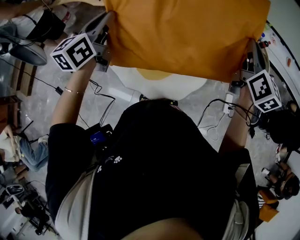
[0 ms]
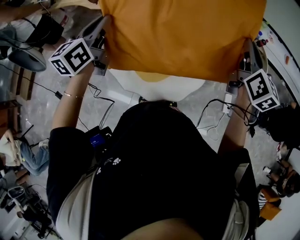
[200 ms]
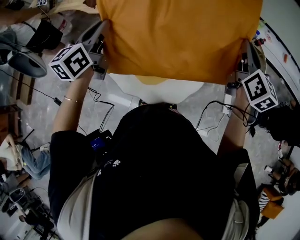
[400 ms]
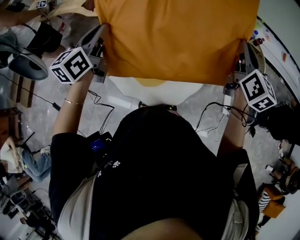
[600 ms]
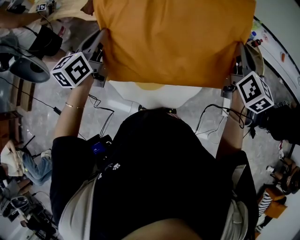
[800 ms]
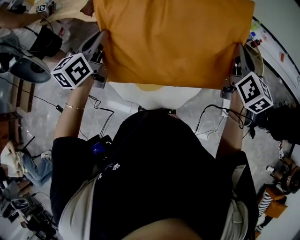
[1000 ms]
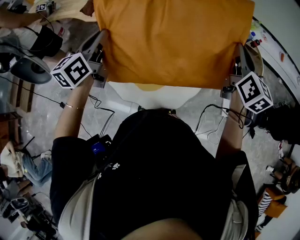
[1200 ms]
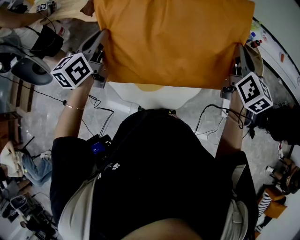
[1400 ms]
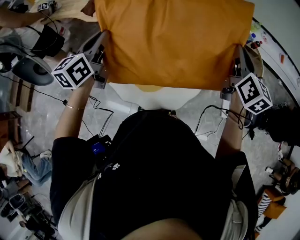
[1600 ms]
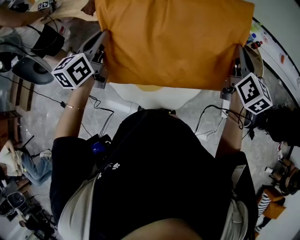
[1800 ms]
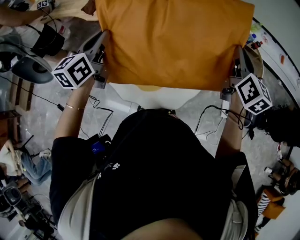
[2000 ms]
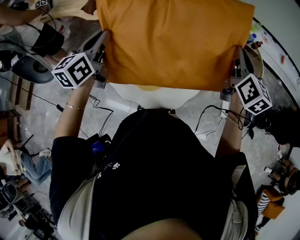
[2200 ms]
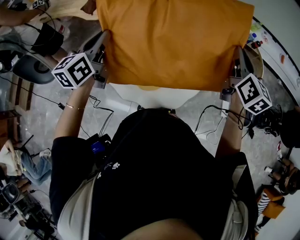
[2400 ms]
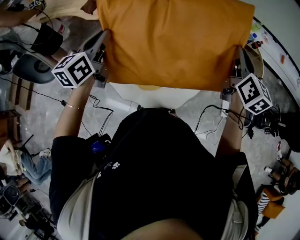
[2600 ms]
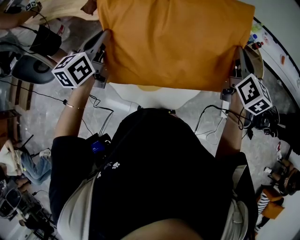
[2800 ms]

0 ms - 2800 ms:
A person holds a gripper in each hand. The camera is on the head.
0 ms - 1400 ms: Neither gripper changes place.
1400 ms - 2800 ms: The grippers make only small movements.

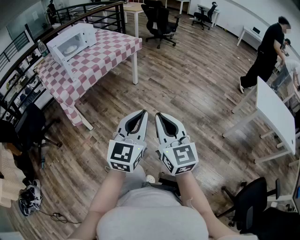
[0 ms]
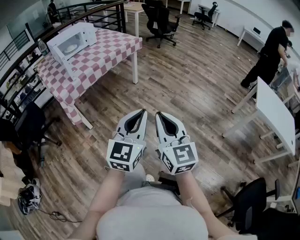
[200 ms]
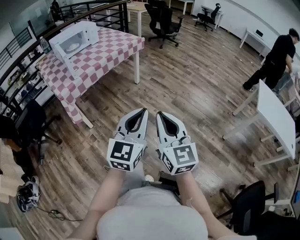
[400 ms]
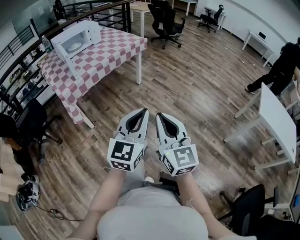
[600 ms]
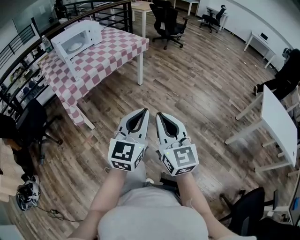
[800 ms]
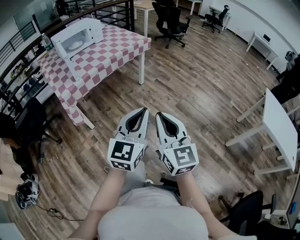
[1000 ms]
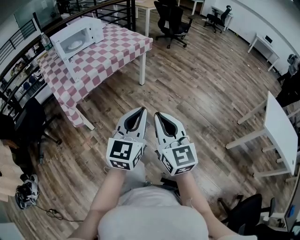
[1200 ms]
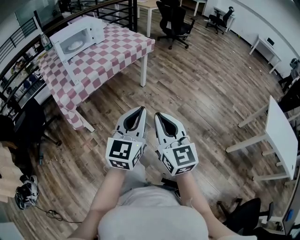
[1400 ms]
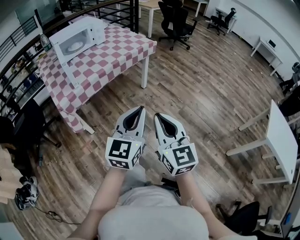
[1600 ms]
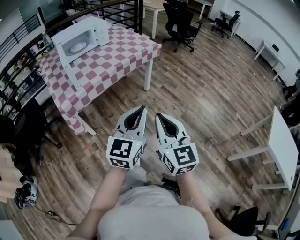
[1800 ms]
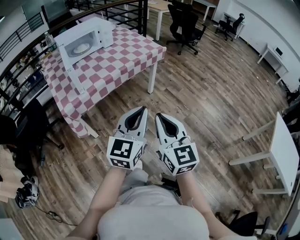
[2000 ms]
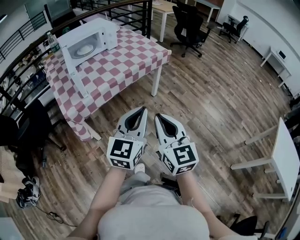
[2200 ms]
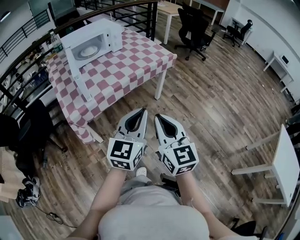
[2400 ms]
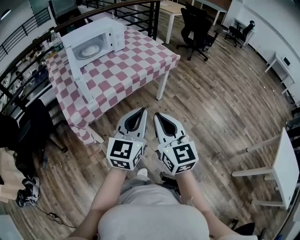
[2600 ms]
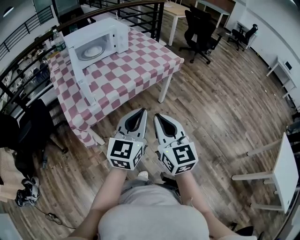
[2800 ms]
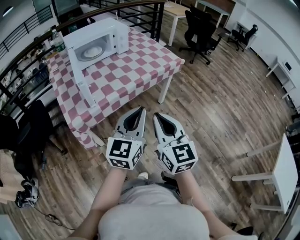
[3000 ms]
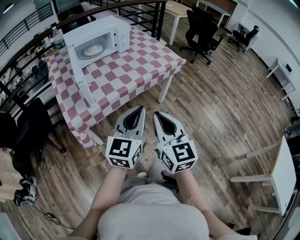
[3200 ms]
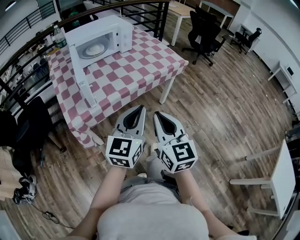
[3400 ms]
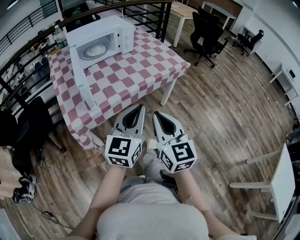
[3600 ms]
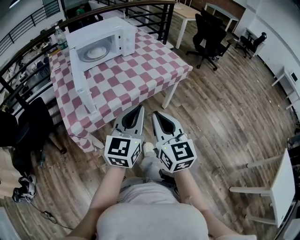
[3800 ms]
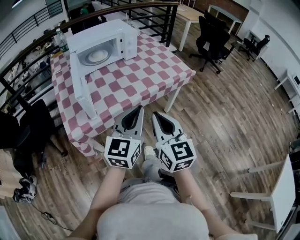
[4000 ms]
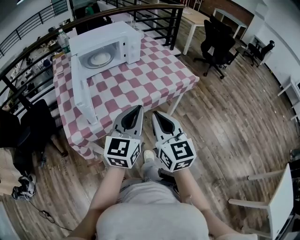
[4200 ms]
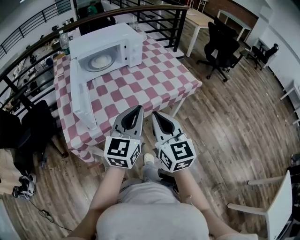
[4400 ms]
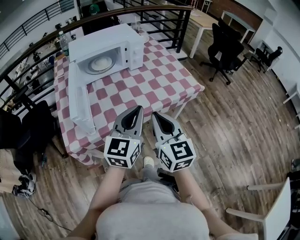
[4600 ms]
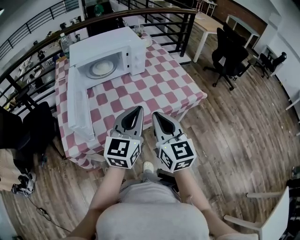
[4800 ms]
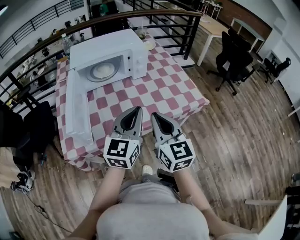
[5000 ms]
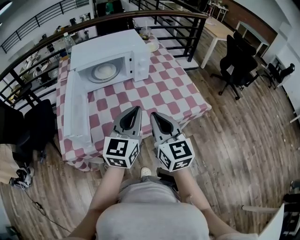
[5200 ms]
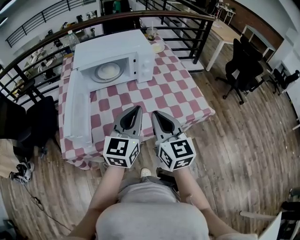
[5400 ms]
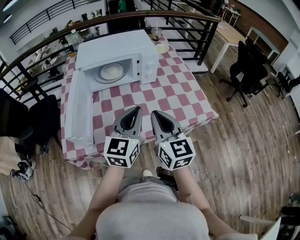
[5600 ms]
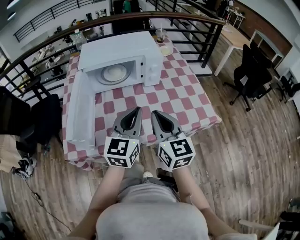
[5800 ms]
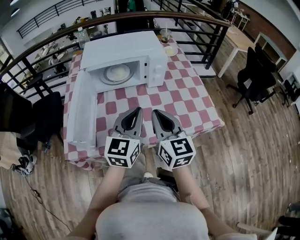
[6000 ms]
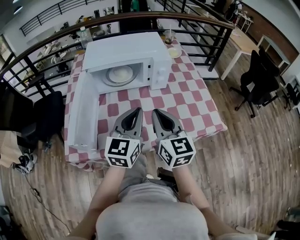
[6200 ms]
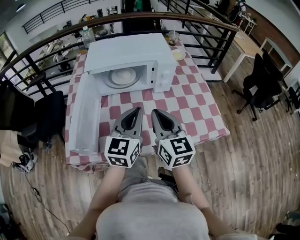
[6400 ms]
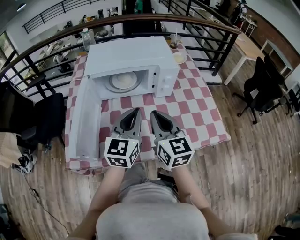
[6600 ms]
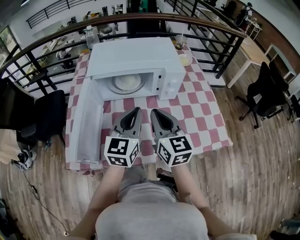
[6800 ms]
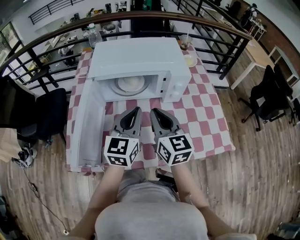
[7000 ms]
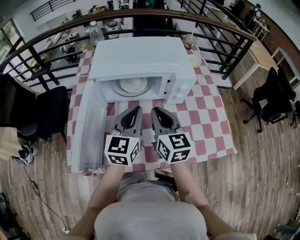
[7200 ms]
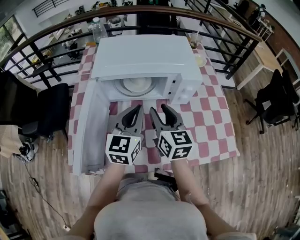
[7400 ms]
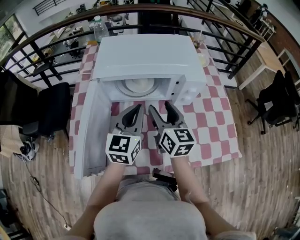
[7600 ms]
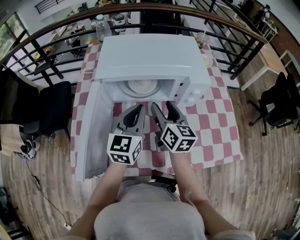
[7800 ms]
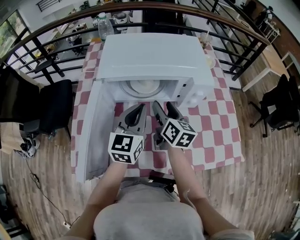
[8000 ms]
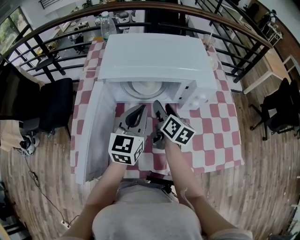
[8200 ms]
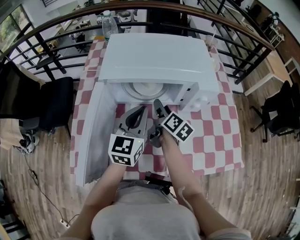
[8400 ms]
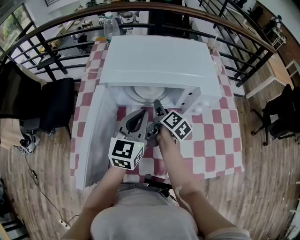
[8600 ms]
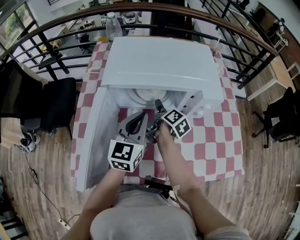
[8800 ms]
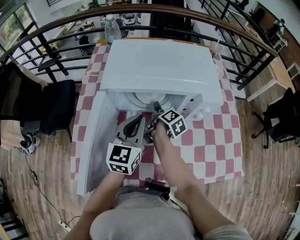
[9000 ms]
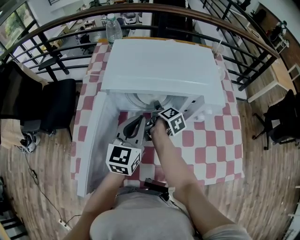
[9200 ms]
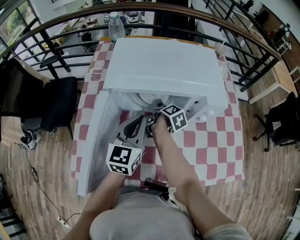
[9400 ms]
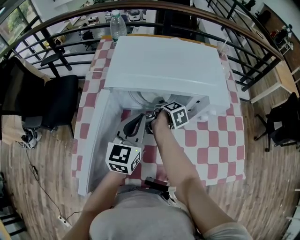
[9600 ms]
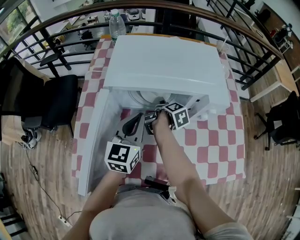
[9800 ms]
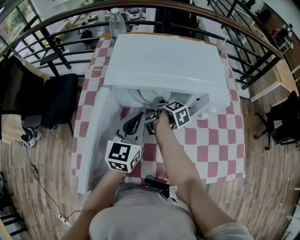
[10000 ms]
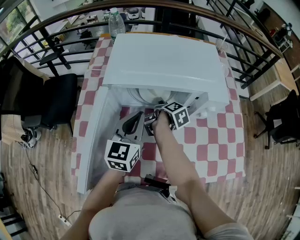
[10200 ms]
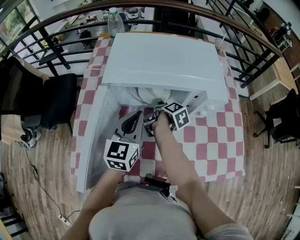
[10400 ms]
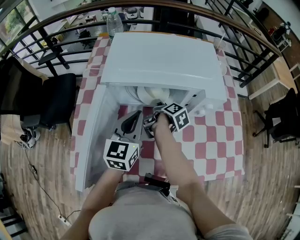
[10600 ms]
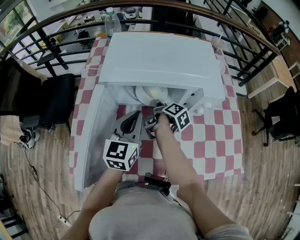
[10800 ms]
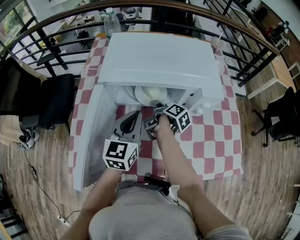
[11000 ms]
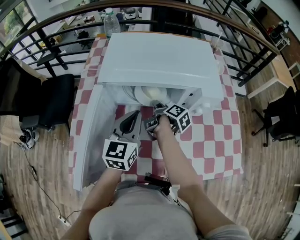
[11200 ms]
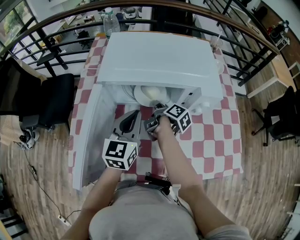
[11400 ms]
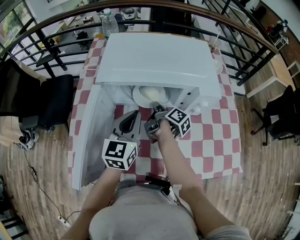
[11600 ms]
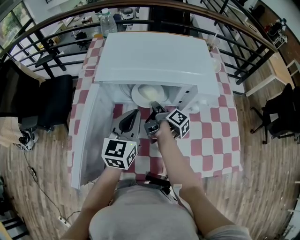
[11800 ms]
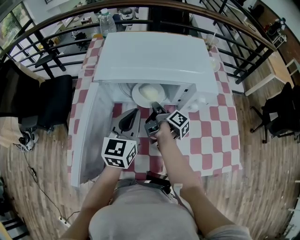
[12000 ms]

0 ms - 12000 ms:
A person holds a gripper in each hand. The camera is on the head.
0 ms - 1600 ms: Both grippers move forward, approximately 20 cm.
1600 ms - 3000 ms: The two grippers go some 25 cm forward and to the left.
3000 ms - 4400 ms: Both grippers move forward, approximately 20 cm.
4400 ms - 6000 ms: The two grippers go about 20 cm forward.
6000 ms - 7600 ms: The left gripper goes roughly 20 cm forward and to the left; the right gripper shifts roughly 20 cm forward, and opens up.
7600 ms - 9000 ms: The right gripper goes approximately 20 cm downward and forward, and twists roughly 60 degrees clockwise, seen from behind. The left gripper changes place by roughly 5 cm.
9000 ms - 10400 ms: There are only small adjustments of the grippers.
10400 ms - 12000 ms: The right gripper rotates approximately 30 degrees, and closes its fingers.

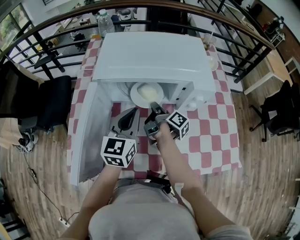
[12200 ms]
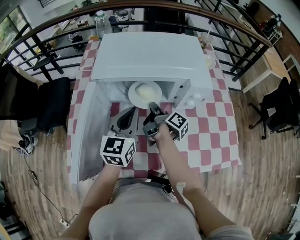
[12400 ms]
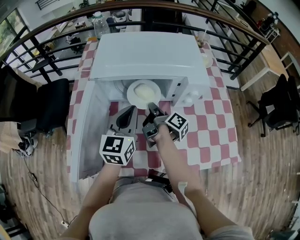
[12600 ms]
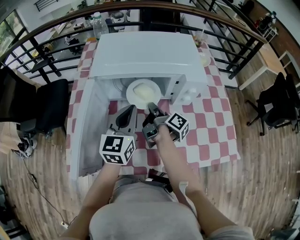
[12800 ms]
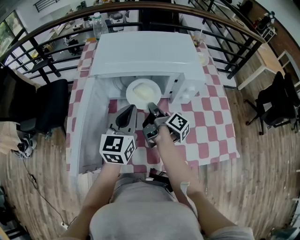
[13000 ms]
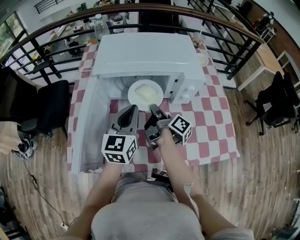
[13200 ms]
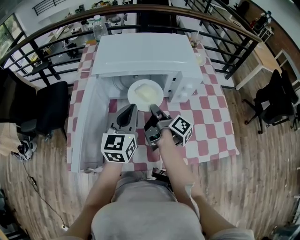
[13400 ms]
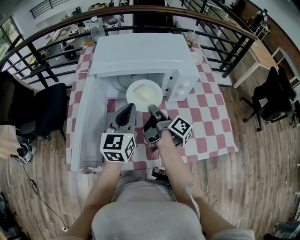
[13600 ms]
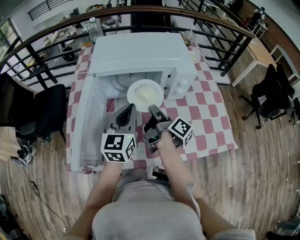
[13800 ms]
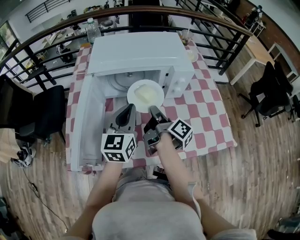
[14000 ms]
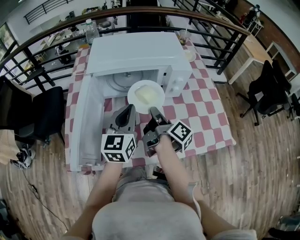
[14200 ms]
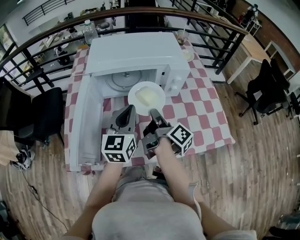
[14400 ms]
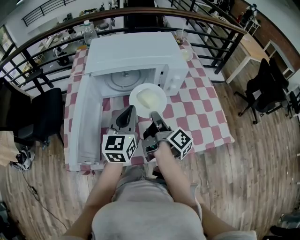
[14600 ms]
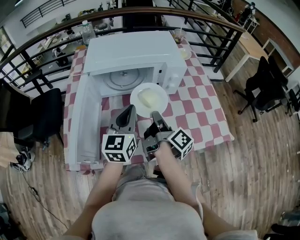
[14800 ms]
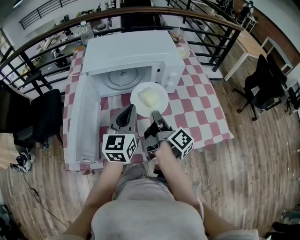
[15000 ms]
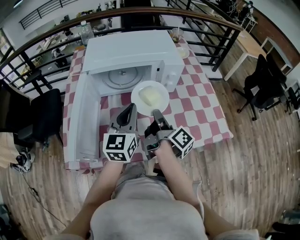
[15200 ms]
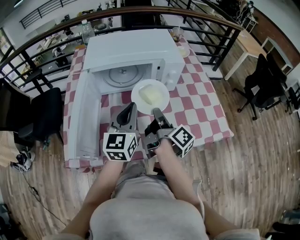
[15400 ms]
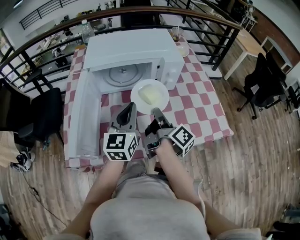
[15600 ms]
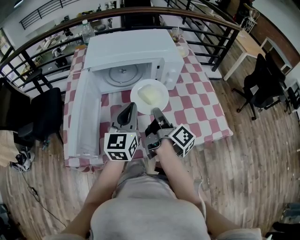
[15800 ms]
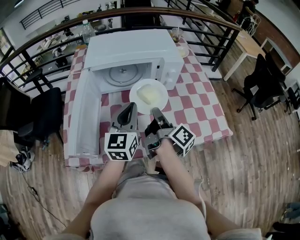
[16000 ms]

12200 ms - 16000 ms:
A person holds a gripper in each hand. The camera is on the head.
12200 ms - 13400 ms: The right gripper goes approximately 10 cm backward and upward.
13400 ms - 14800 ms: The left gripper changes place by roughly 5 cm. Meanwhile the right gripper travels backward by about 10 cm.
14800 ms - 16000 ms: The grippers move only a little.

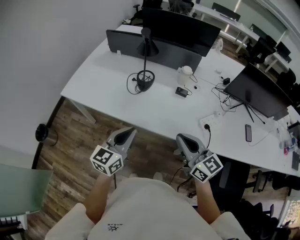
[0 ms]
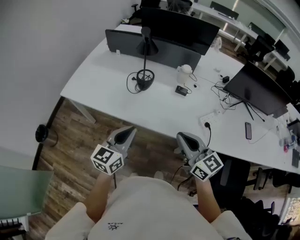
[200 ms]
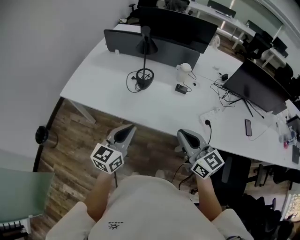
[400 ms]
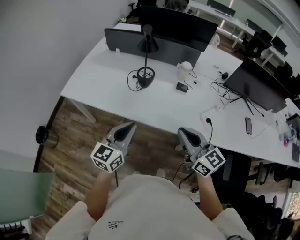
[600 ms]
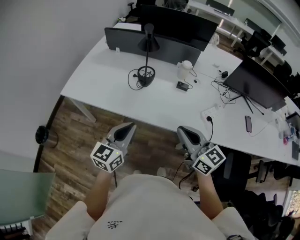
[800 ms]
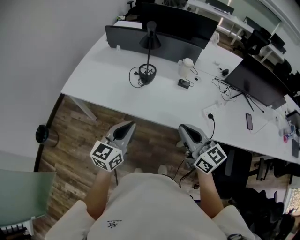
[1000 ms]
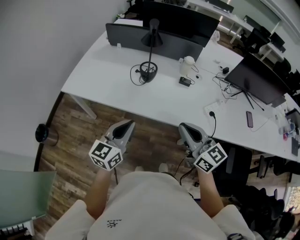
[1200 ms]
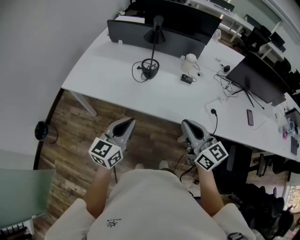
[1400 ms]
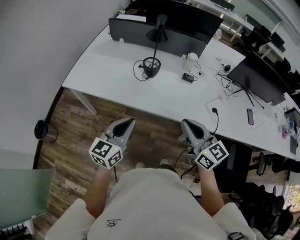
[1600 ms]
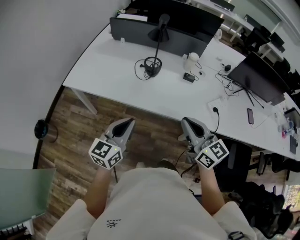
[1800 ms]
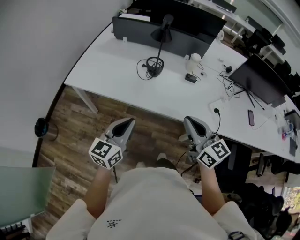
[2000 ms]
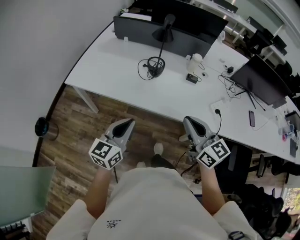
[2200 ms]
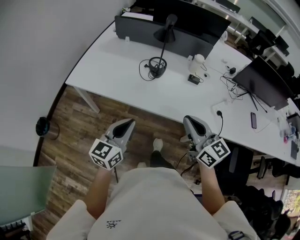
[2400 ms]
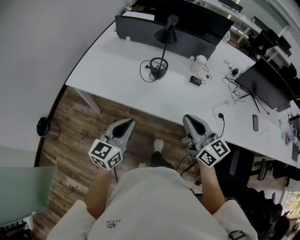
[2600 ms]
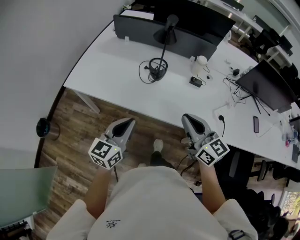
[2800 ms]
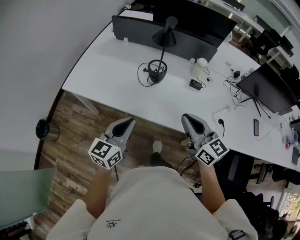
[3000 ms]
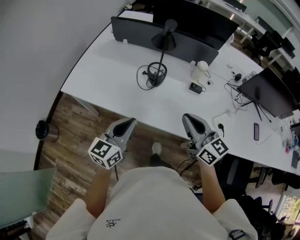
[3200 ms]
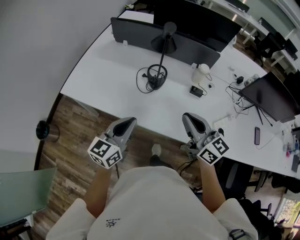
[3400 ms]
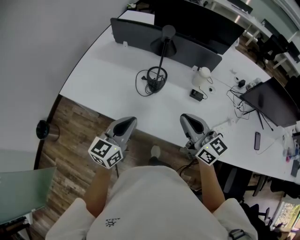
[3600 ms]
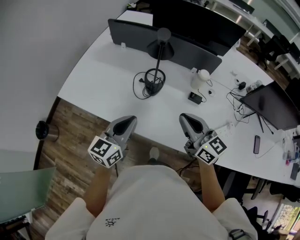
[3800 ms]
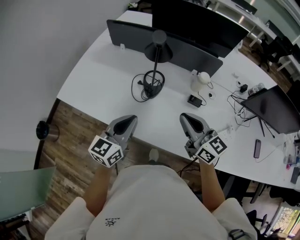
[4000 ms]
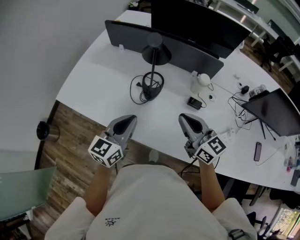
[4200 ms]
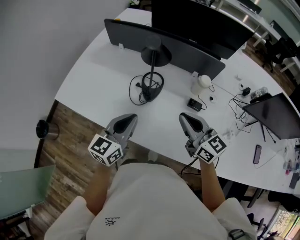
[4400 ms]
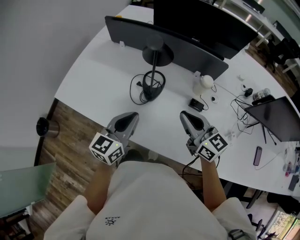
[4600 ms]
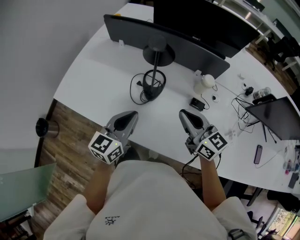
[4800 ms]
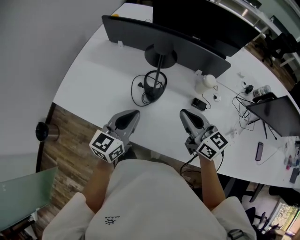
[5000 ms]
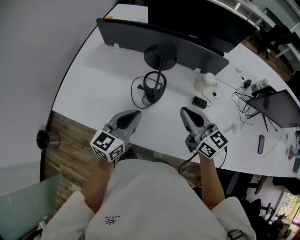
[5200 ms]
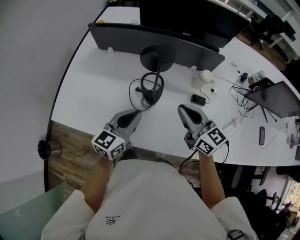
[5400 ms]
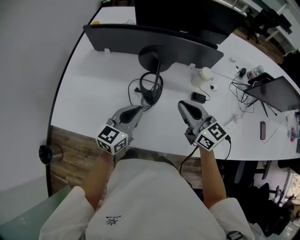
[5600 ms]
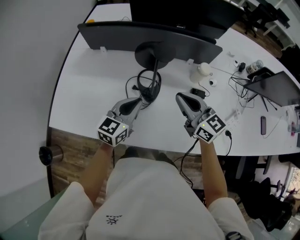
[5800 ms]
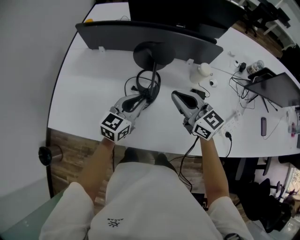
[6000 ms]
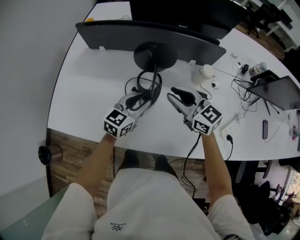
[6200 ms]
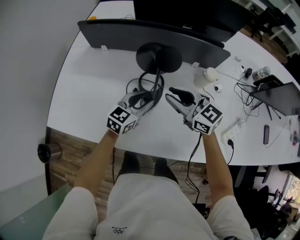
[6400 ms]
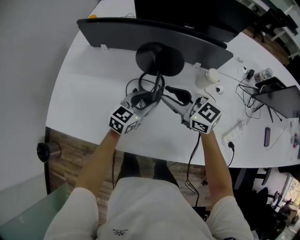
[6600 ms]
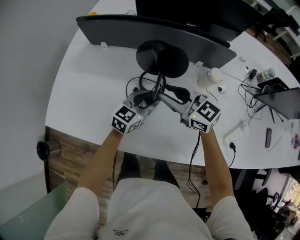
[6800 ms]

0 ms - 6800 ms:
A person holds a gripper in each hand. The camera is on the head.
0 ms - 1400 ms: Both grippers move to the left, approximately 10 cm.
1400 ms - 2800 ms: The left gripper shifts by some 5 cm. The right gripper travels forward by about 10 cm.
2800 ms - 4000 ms: The grippers both shift forward and to the right by some 20 cm.
4000 ms - 5400 ms: Both grippers travel together forward, about 10 cm.
5400 ms - 6800 ms: The right gripper heads forward, to the left and downward, covering about 15 cm, turns by some 20 degrees, and opens, while the left gripper moves downward, forward and to the right, some 20 cm, and opens up.
